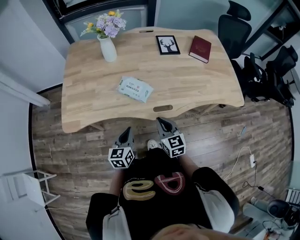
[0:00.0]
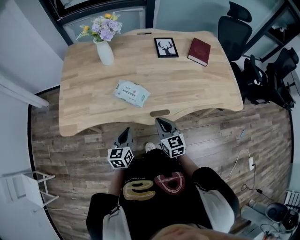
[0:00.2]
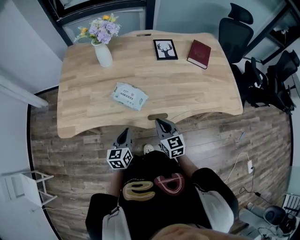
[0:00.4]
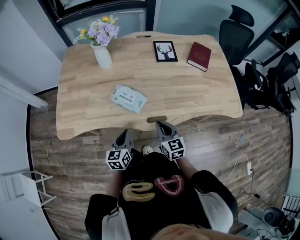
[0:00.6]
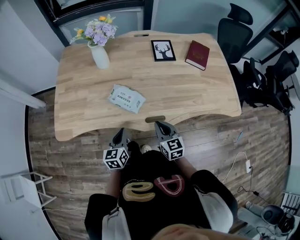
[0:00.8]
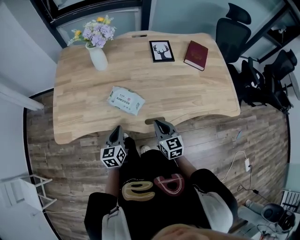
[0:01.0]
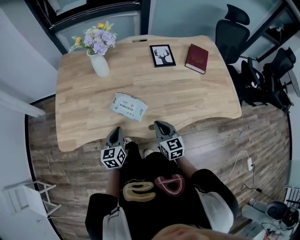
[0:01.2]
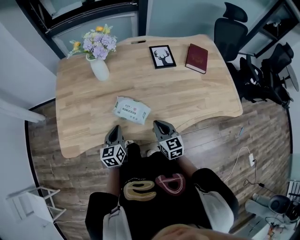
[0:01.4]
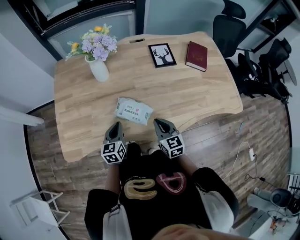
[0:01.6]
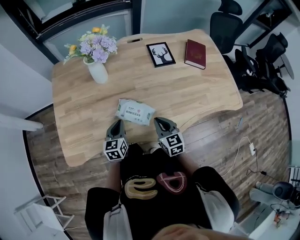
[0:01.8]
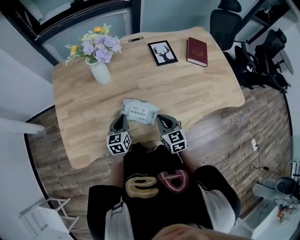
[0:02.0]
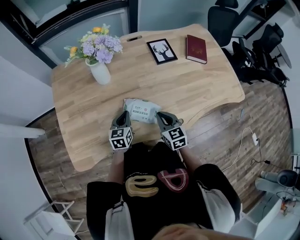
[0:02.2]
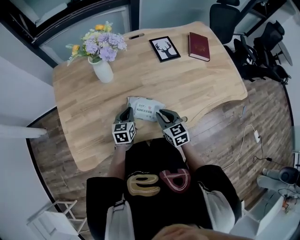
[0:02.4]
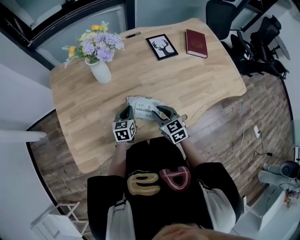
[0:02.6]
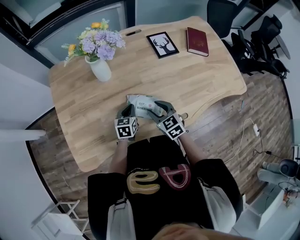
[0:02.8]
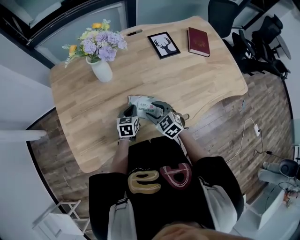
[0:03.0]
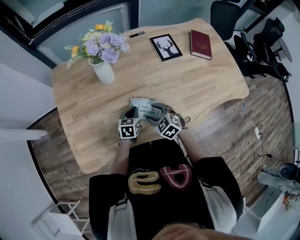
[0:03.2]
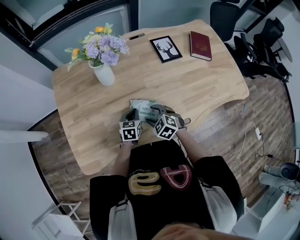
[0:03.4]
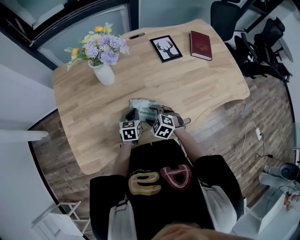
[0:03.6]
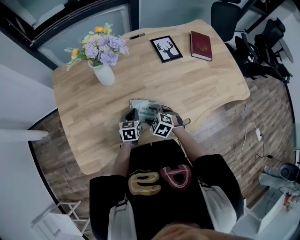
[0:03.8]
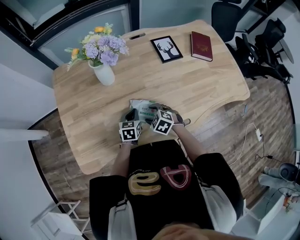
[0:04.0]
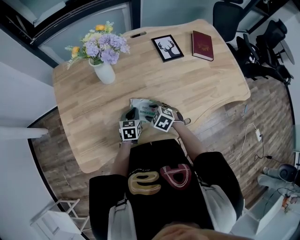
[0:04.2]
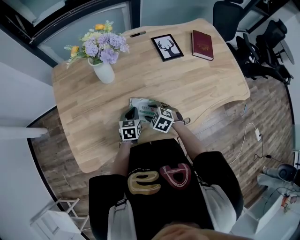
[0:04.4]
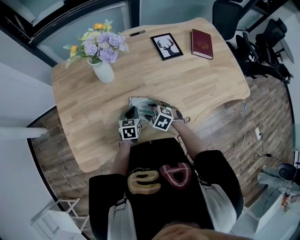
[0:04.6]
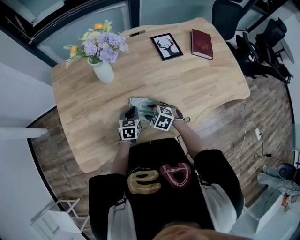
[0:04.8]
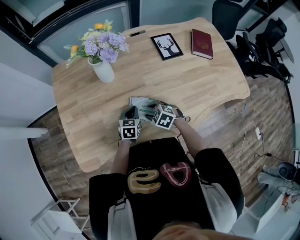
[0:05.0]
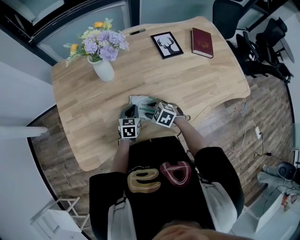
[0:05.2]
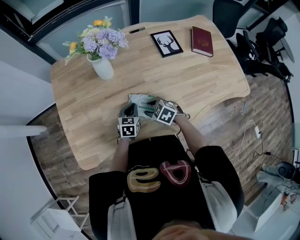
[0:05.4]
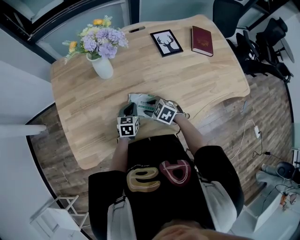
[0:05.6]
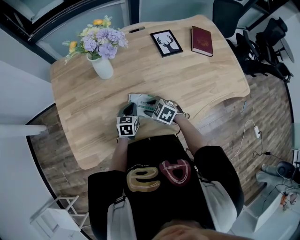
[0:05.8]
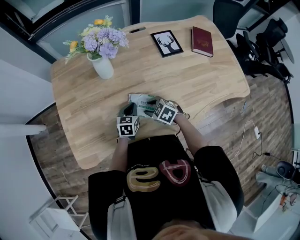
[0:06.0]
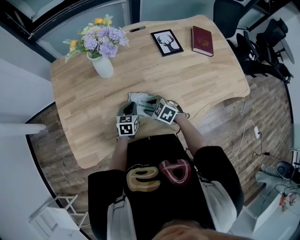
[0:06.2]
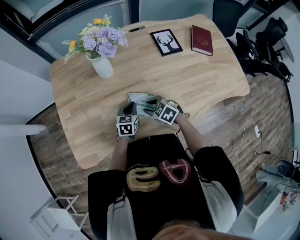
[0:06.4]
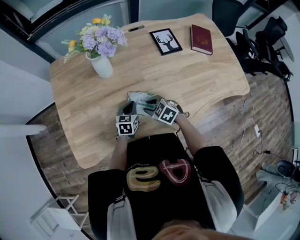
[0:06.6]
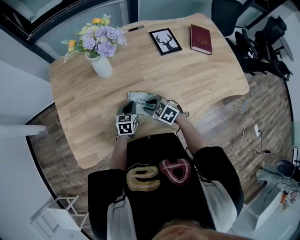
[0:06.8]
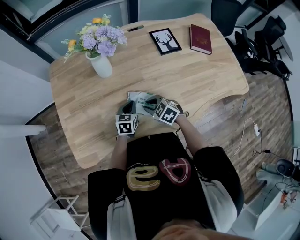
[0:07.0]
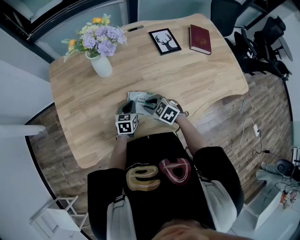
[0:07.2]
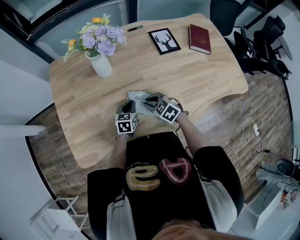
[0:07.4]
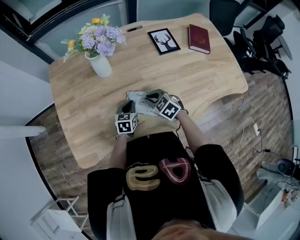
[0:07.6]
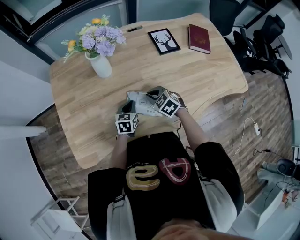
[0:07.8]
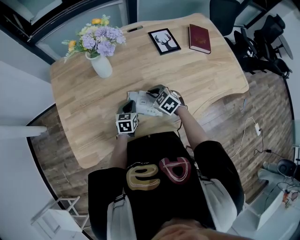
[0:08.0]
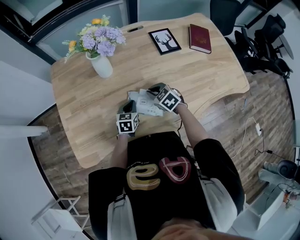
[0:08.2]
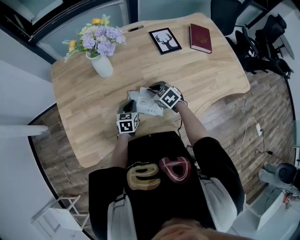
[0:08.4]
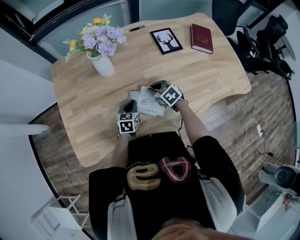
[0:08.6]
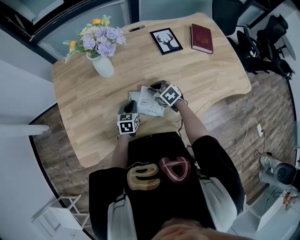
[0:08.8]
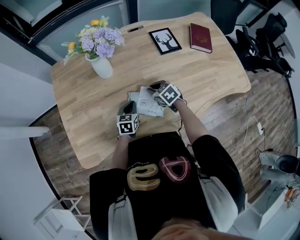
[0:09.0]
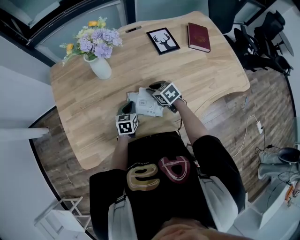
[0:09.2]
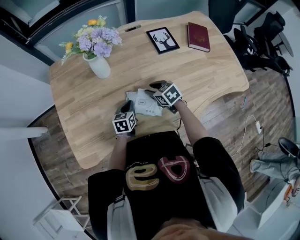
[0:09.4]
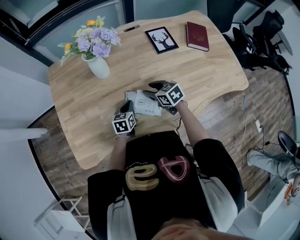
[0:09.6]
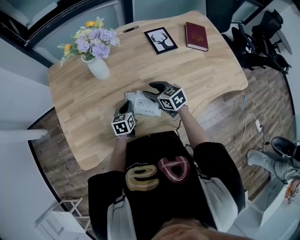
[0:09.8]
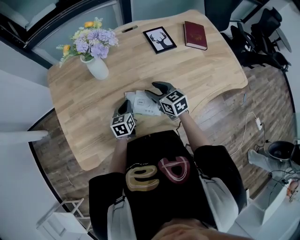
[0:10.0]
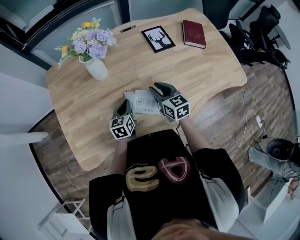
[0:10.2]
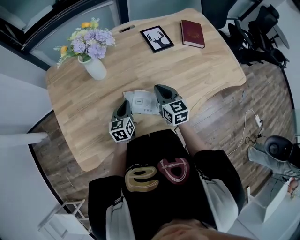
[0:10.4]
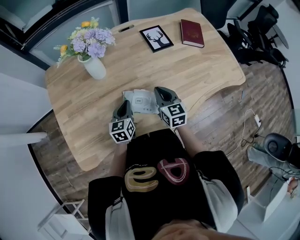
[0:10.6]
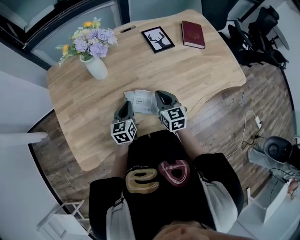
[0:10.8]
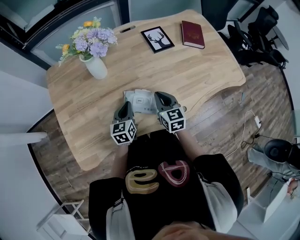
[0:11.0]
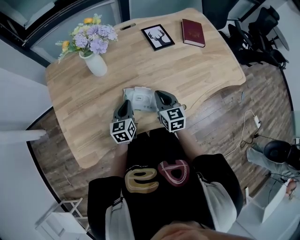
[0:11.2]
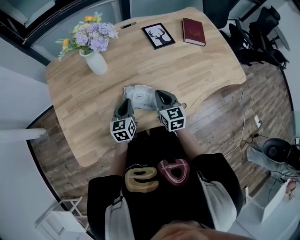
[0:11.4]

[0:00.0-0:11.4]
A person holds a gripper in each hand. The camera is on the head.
0.0 to 1.4 s: Both grippers travel together forward, some 15 cm.
1.4 to 2.8 s: The left gripper travels forward and downward by about 15 cm, and changes its angle by some 20 degrees. The right gripper travels to the left and forward by about 15 cm, and opens up.
2.8 to 4.2 s: The right gripper is displaced downward by about 5 cm, and turns by roughly 30 degrees.
4.2 to 7.2 s: The grippers move only a little.
7.2 to 8.6 s: The right gripper heads forward, covering some 5 cm.
8.6 to 10.0 s: The right gripper goes about 5 cm upward, swivels approximately 30 degrees, and opens.
10.0 to 11.4 s: The left gripper shifts by about 5 cm; the right gripper heads backward, covering approximately 5 cm, changes its angle by roughly 20 degrees, and closes its fingers.

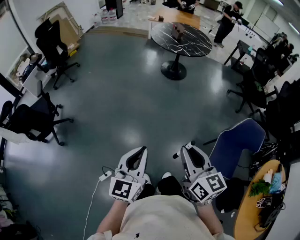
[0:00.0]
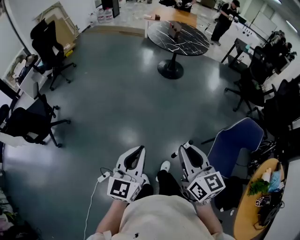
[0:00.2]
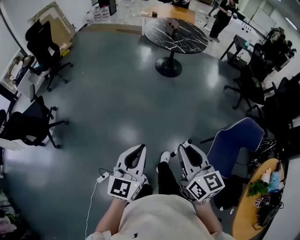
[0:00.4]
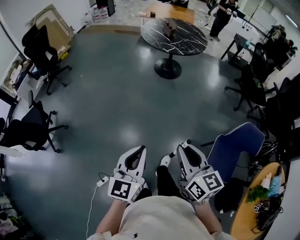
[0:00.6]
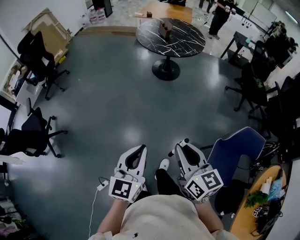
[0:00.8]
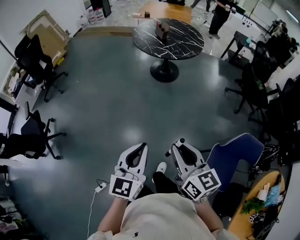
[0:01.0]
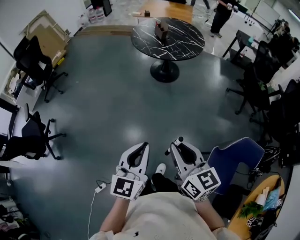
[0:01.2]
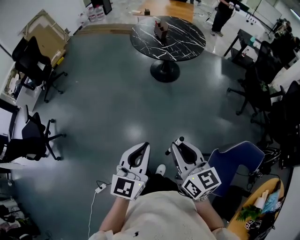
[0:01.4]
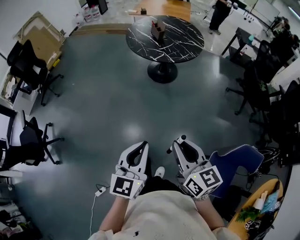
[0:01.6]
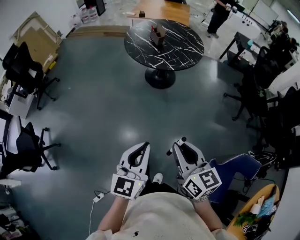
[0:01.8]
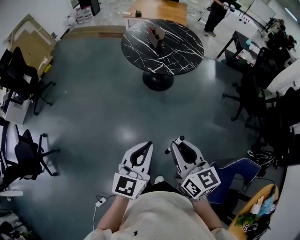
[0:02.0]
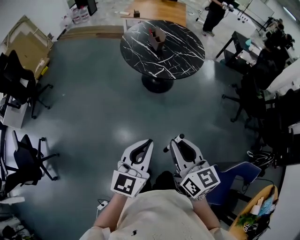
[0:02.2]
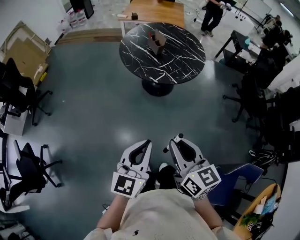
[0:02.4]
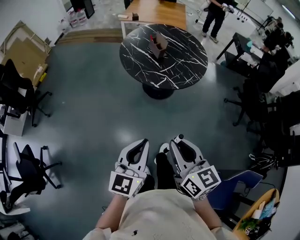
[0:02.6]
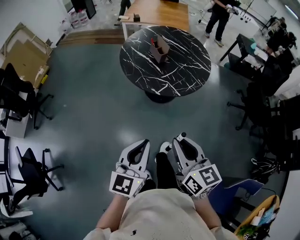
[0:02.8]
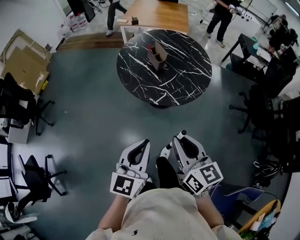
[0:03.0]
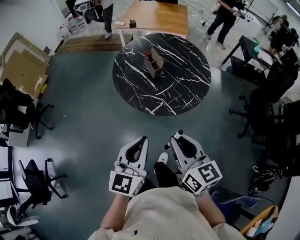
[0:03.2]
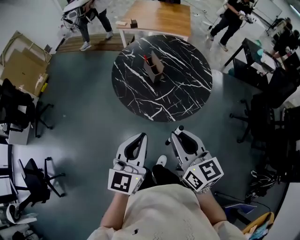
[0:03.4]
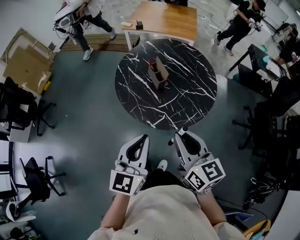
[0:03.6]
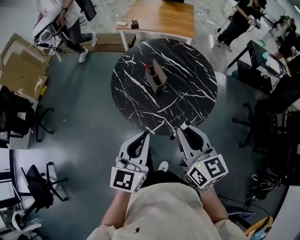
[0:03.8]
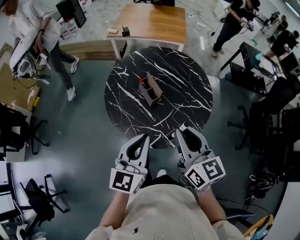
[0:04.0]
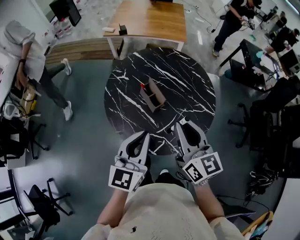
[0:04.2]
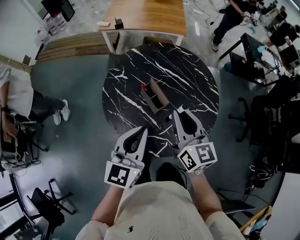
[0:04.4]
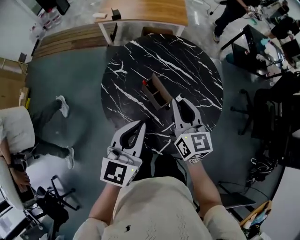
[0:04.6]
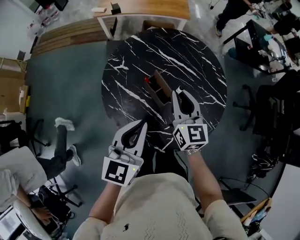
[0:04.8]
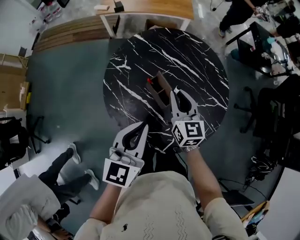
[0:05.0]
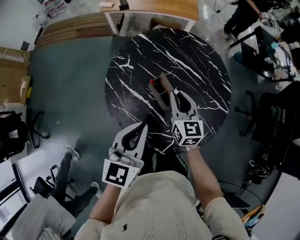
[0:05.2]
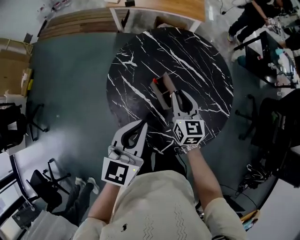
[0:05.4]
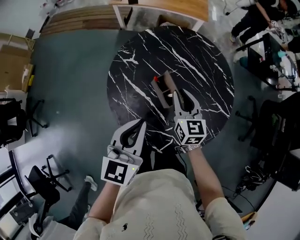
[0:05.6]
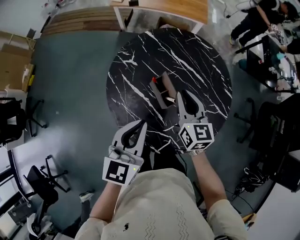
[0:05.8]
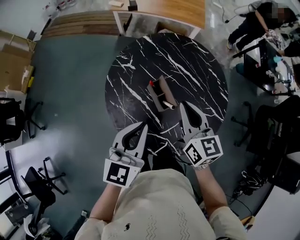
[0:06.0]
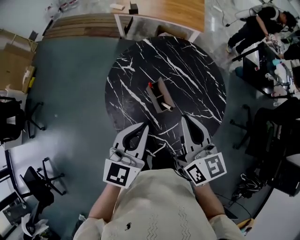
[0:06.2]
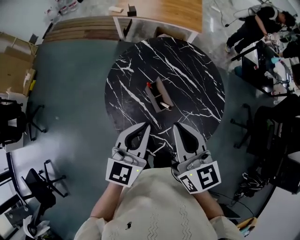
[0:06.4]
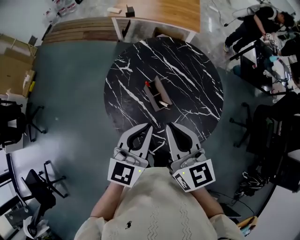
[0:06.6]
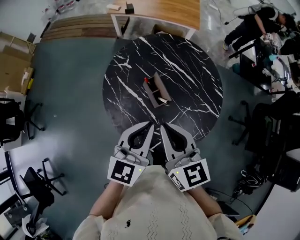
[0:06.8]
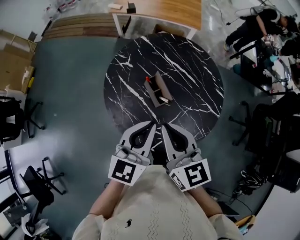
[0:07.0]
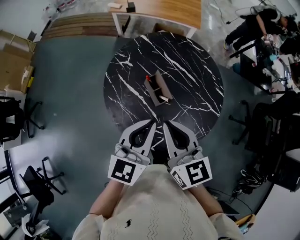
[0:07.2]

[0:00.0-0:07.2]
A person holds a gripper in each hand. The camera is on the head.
0.0 to 1.4 s: Both grippers move forward and to the right, some 35 cm.
1.4 to 2.8 s: The pair of grippers is taken forward, some 40 cm.
2.8 to 4.4 s: The pair of grippers is taken forward, about 60 cm.
4.4 to 5.8 s: The right gripper moves downward and forward, some 15 cm, while the left gripper moves forward, approximately 5 cm.
5.8 to 7.2 s: The right gripper travels backward and upward by about 20 cm. Meanwhile the left gripper heads to the right, covering roughly 5 cm.

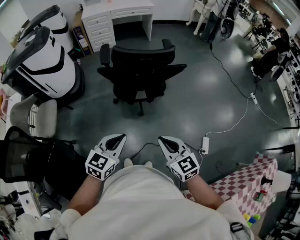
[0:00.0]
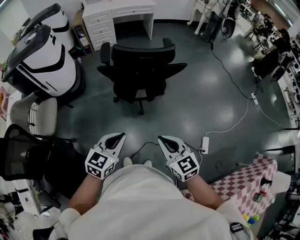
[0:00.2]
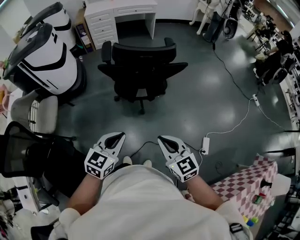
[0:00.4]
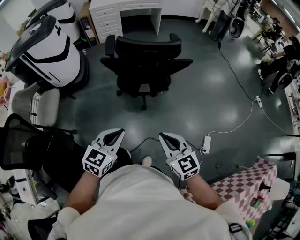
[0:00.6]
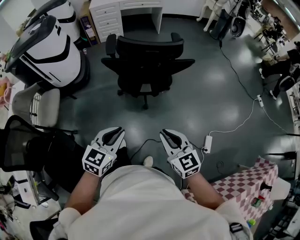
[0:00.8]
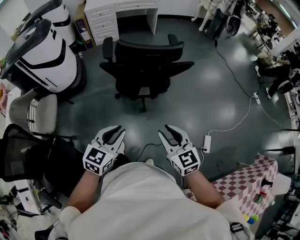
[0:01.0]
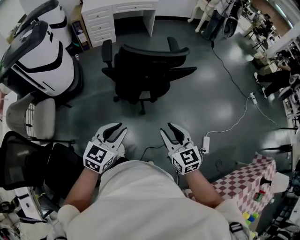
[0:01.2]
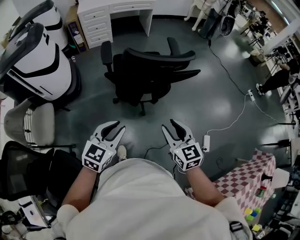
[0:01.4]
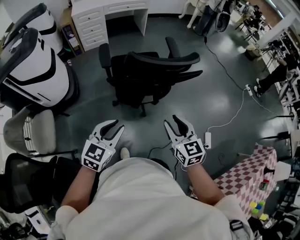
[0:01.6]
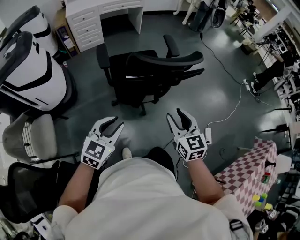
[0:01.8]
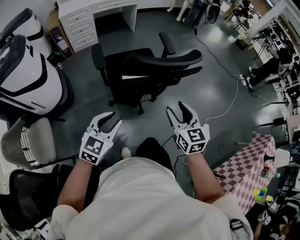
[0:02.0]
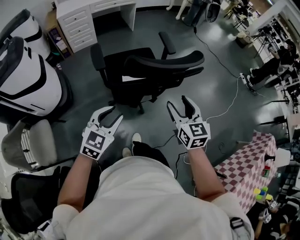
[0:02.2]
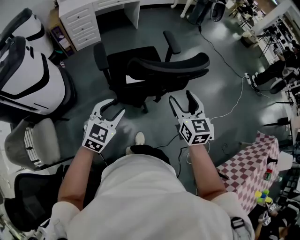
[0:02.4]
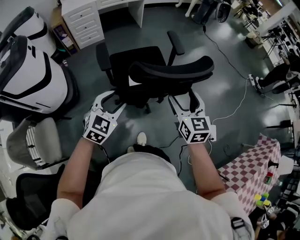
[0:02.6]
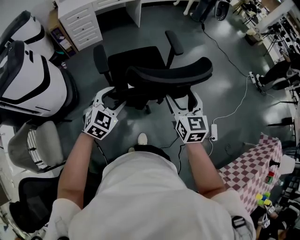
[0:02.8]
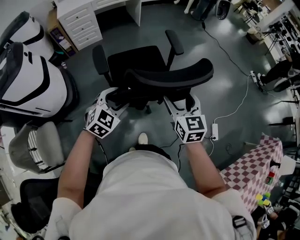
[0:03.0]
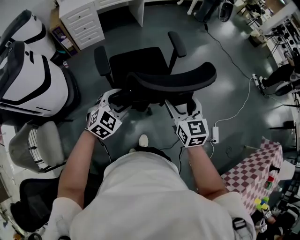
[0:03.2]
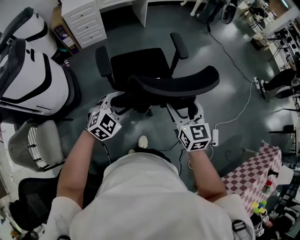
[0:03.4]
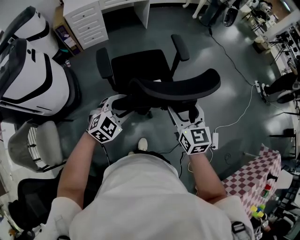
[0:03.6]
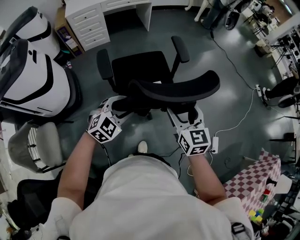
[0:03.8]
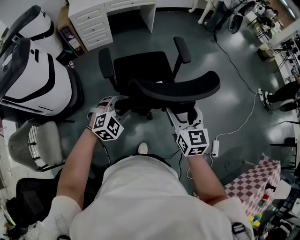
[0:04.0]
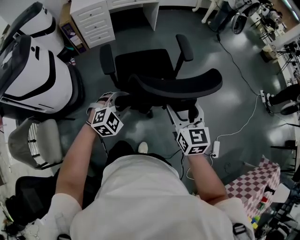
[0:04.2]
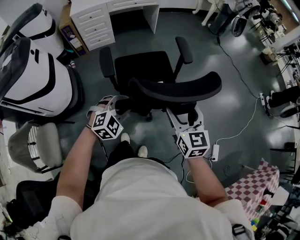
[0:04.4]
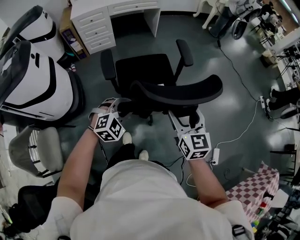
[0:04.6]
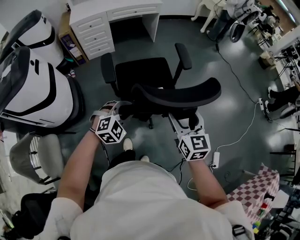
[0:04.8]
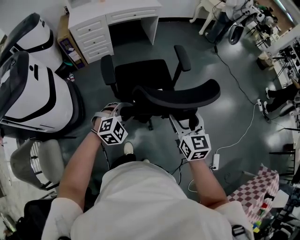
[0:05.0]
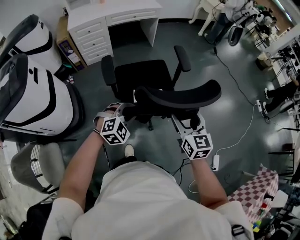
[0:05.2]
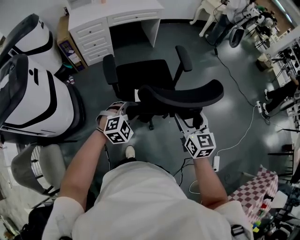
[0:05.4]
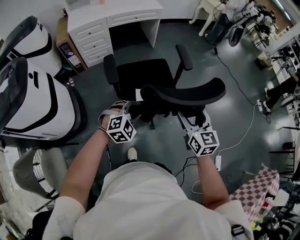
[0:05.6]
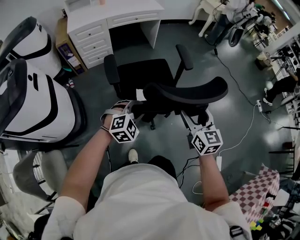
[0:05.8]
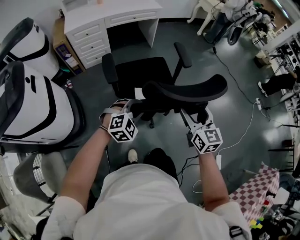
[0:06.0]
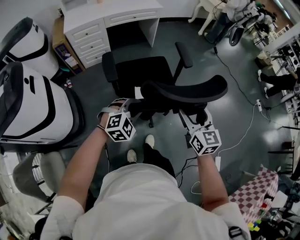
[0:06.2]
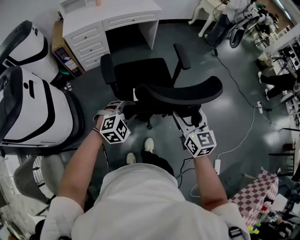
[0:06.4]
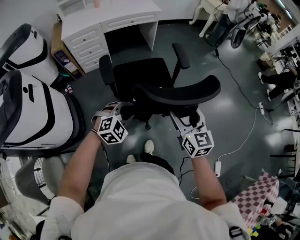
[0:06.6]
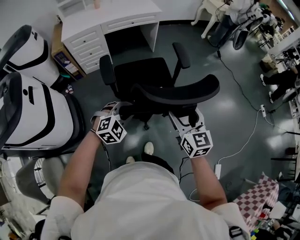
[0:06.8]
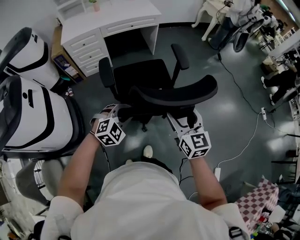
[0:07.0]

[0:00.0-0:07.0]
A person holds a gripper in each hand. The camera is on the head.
0.0 to 1.4 s: Both grippers move forward and to the left, approximately 15 cm. The right gripper opens its fingers; the left gripper opens up.
1.4 to 2.8 s: The left gripper heads forward and to the left, covering approximately 25 cm, turns by roughly 30 degrees, and opens up; the right gripper shifts approximately 20 cm forward, rotates some 20 degrees, and opens its fingers.
2.8 to 4.2 s: The right gripper shifts some 10 cm forward, while the left gripper goes roughly 10 cm forward and downward, and closes its fingers.
4.2 to 5.6 s: The two grippers go about 15 cm forward and to the left.
5.6 to 7.0 s: The grippers both shift forward by approximately 15 cm.
